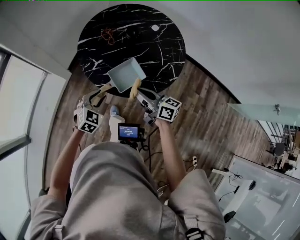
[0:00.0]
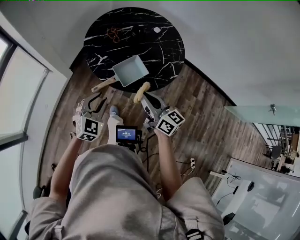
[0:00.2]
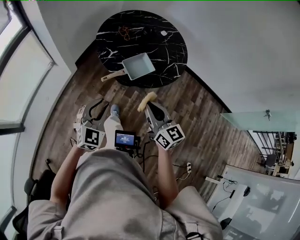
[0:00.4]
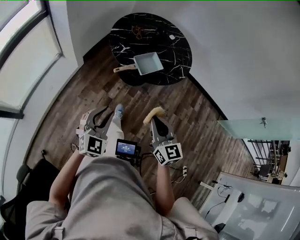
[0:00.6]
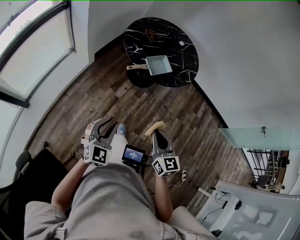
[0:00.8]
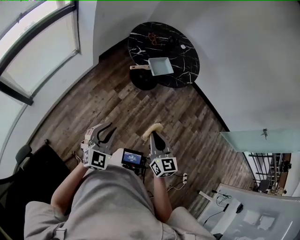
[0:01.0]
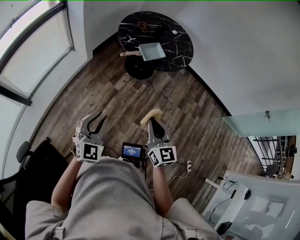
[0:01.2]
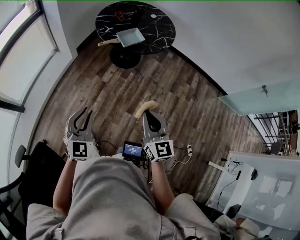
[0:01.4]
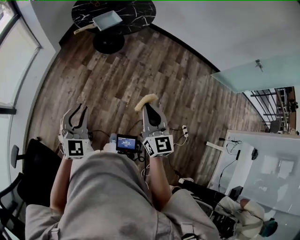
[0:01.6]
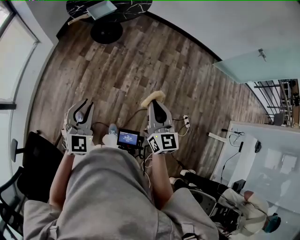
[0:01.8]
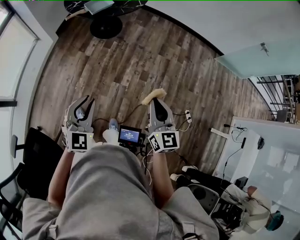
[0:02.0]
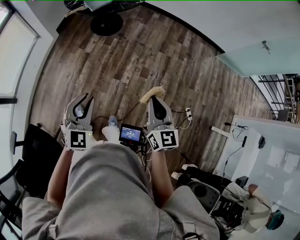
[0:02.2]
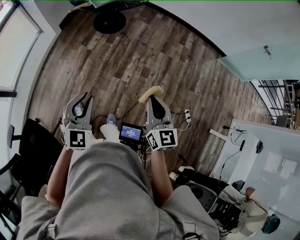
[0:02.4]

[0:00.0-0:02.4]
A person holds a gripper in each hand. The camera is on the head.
0:00.0 to 0:01.2: The two grippers travel together, backward, about 50 cm. The right gripper changes its angle by about 50 degrees; the left gripper turns by about 30 degrees.
0:01.2 to 0:02.4: Both grippers travel together to the right and backward, about 35 cm.

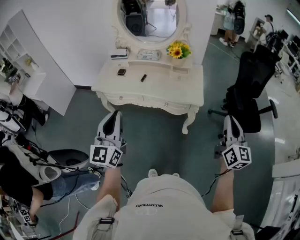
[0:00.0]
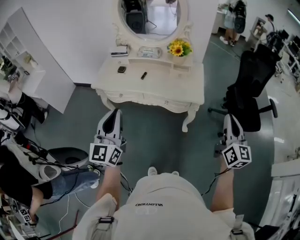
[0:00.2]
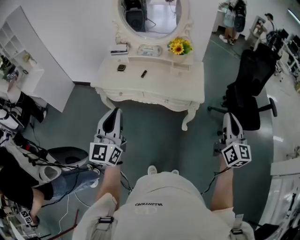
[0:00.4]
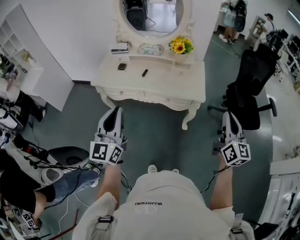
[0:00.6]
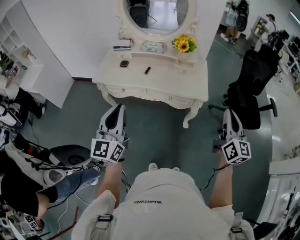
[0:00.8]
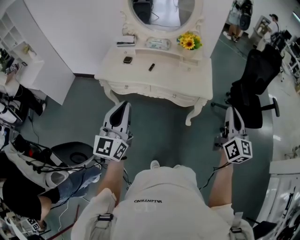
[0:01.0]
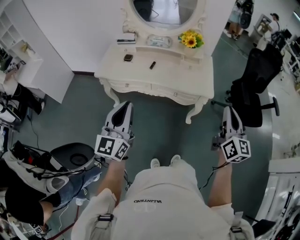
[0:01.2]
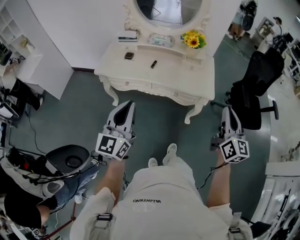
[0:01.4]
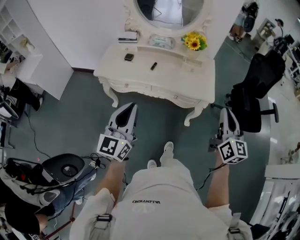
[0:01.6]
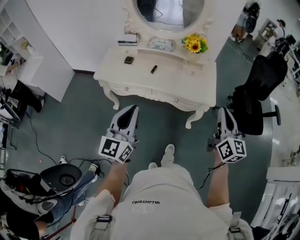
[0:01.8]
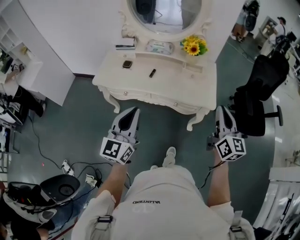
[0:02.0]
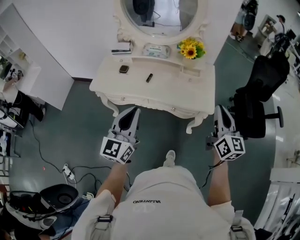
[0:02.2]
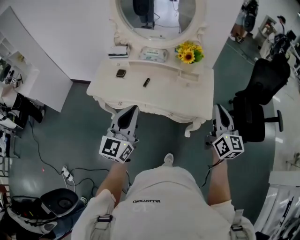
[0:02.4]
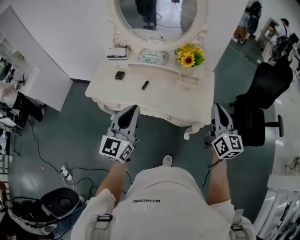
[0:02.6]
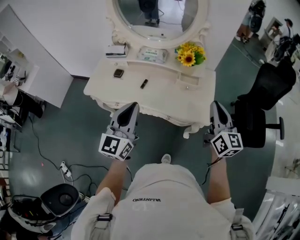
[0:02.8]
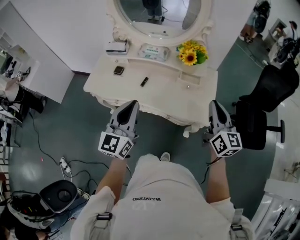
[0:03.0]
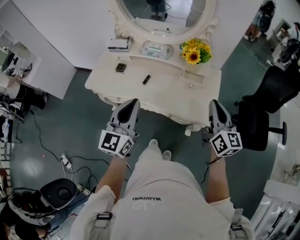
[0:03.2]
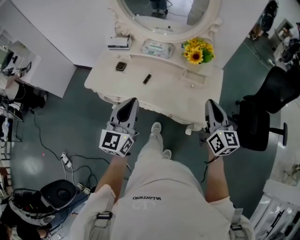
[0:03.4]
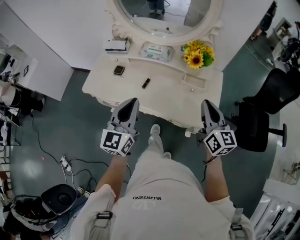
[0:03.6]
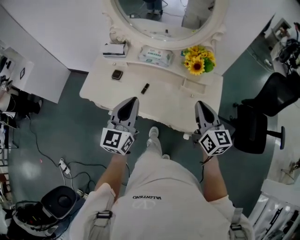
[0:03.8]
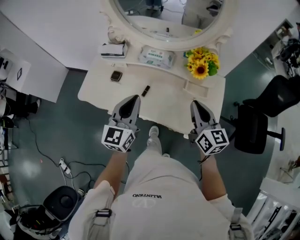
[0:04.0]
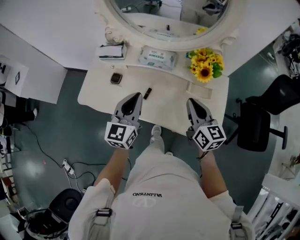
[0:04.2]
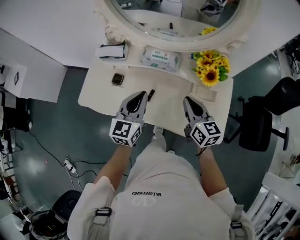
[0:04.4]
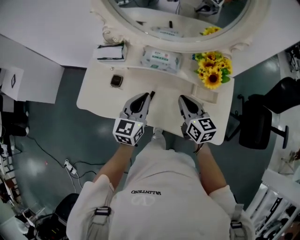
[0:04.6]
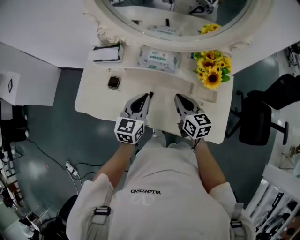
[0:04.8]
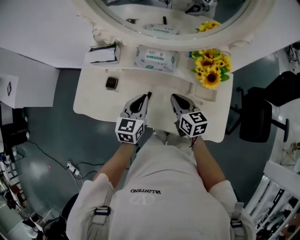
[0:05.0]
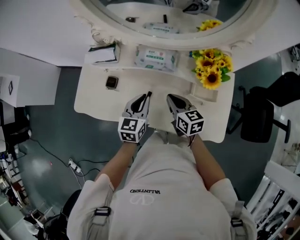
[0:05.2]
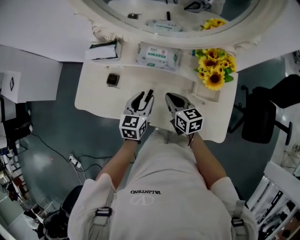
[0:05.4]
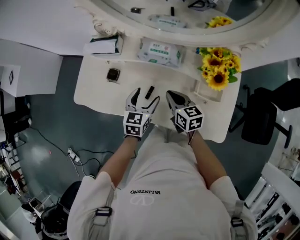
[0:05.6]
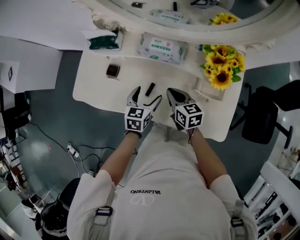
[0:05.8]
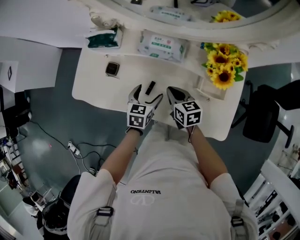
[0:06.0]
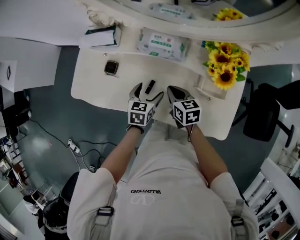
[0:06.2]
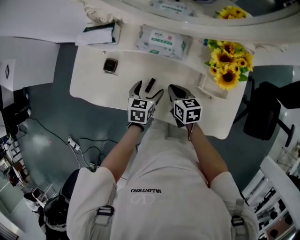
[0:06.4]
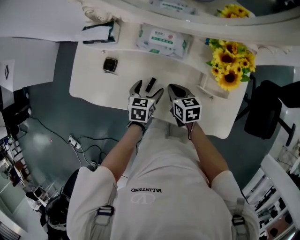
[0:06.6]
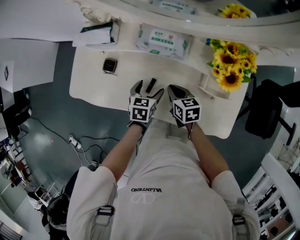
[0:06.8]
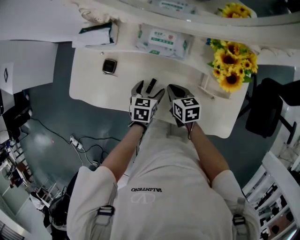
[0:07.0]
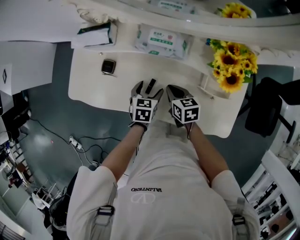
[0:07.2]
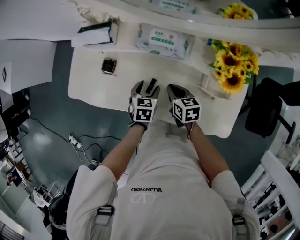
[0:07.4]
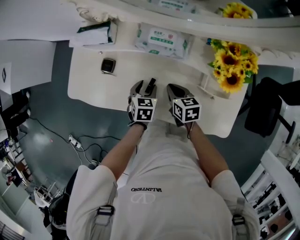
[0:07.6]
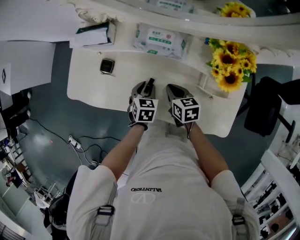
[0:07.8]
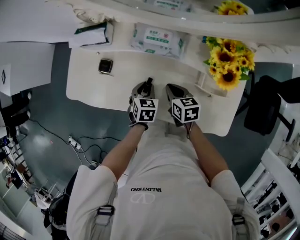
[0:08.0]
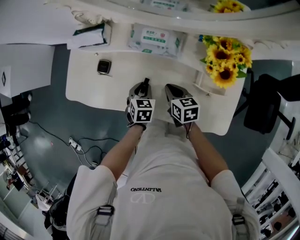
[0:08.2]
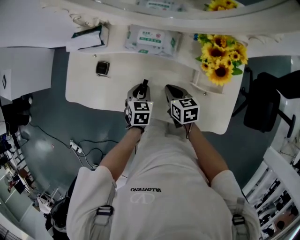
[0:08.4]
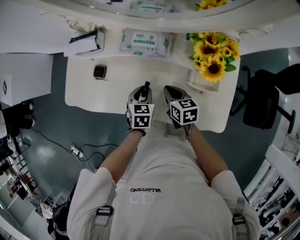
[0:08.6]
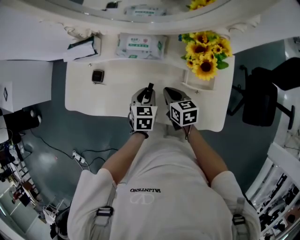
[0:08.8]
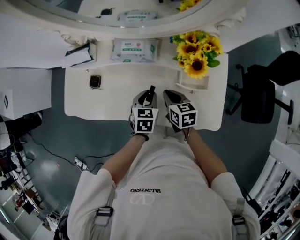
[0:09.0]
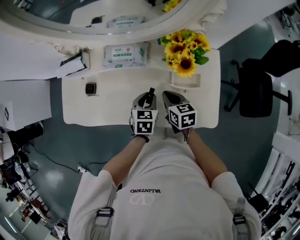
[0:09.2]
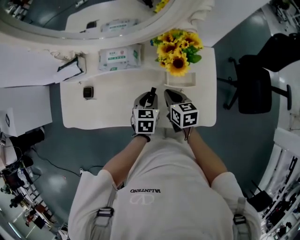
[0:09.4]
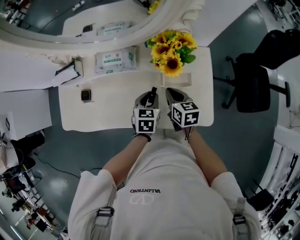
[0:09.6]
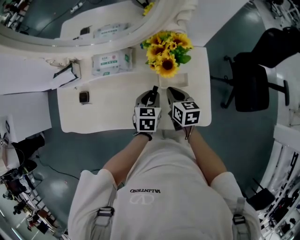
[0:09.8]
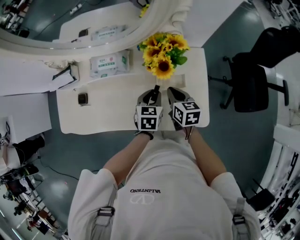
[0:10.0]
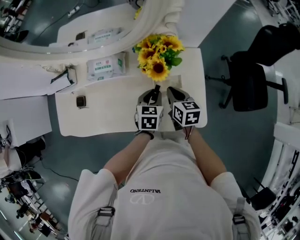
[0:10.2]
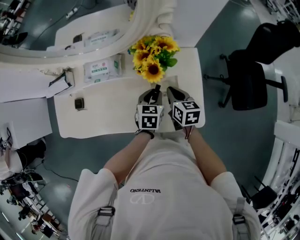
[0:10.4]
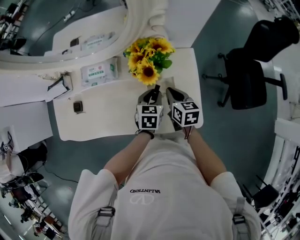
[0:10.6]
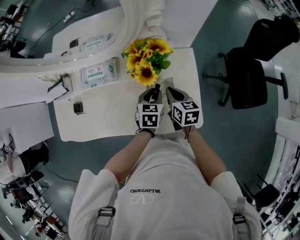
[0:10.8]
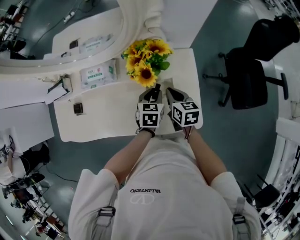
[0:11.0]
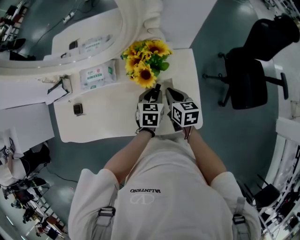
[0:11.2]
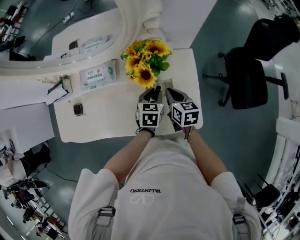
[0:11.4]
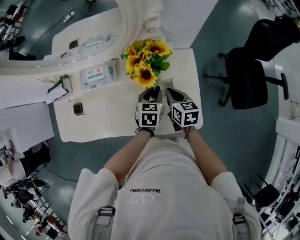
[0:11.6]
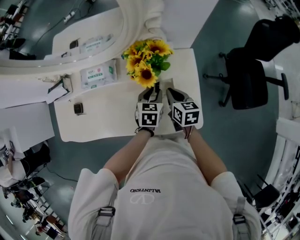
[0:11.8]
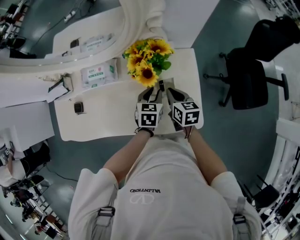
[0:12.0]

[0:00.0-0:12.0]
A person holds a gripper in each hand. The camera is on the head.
0:00.0 to 0:01.6: The right gripper heads to the left and forward, covering about 15 cm, while the left gripper is displaced downward by about 5 cm.
0:01.6 to 0:03.0: Both grippers move forward, roughly 20 cm.
0:03.0 to 0:04.4: The left gripper heads forward and downward, covering some 25 cm. Meanwhile the right gripper shifts roughly 30 cm forward, to the left and downward.
0:04.4 to 0:06.0: The right gripper travels downward and to the left by approximately 15 cm, and changes its angle by some 20 degrees. The left gripper travels downward by roughly 20 cm, tips its fingers downward by about 30 degrees, and opens.
0:06.0 to 0:07.6: Both grippers travel together downward, roughly 5 cm. The left gripper closes.
0:07.6 to 0:09.0: Both grippers move to the right and upward, approximately 10 cm.
0:09.0 to 0:10.4: Both grippers travel together to the right, about 15 cm.
0:10.4 to 0:12.0: There are only small adjustments of the grippers.

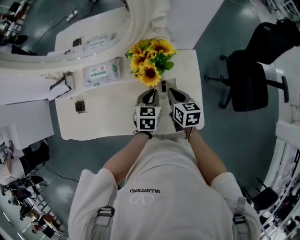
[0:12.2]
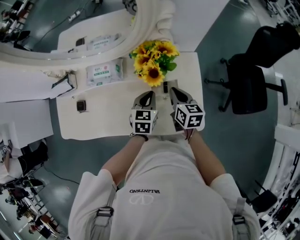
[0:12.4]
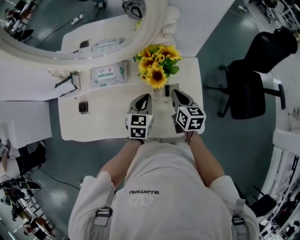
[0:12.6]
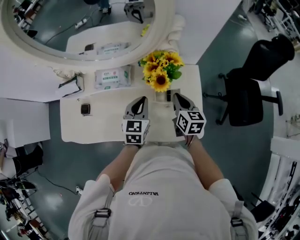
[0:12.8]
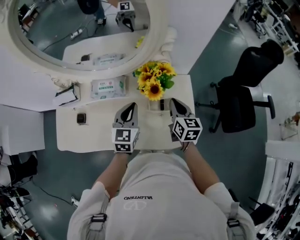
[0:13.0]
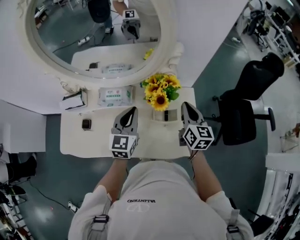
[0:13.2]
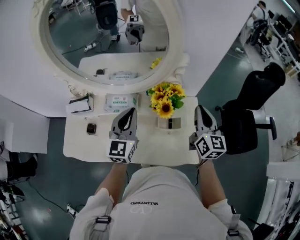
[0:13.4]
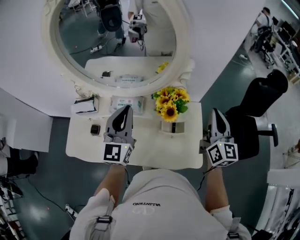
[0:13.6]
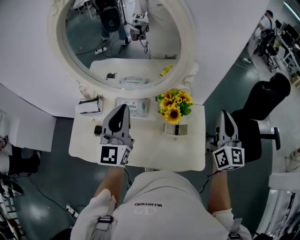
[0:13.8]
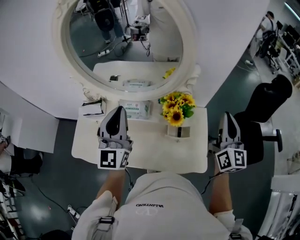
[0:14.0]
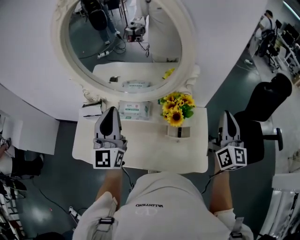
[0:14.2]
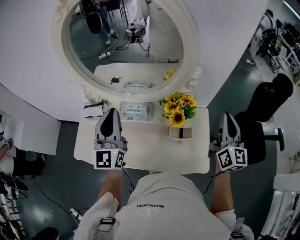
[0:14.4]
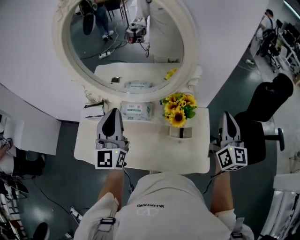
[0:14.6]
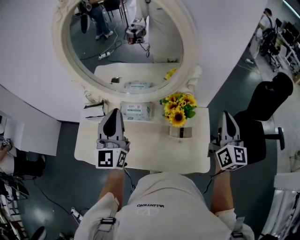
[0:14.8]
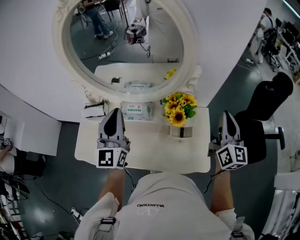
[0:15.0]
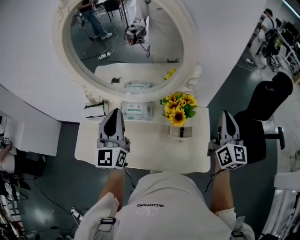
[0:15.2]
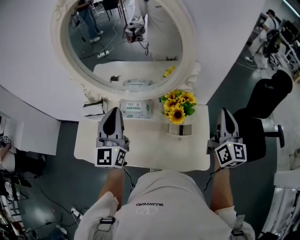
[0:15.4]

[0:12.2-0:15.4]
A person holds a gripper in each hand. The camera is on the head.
0:12.2 to 0:13.8: The right gripper moves upward, about 35 cm, and angles its fingers upward, by some 40 degrees; the left gripper shifts some 40 cm upward and to the left, and angles its fingers upward, by approximately 50 degrees.
0:13.8 to 0:15.4: The grippers make only small movements.

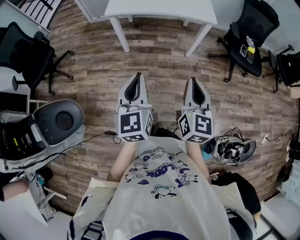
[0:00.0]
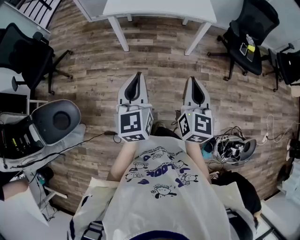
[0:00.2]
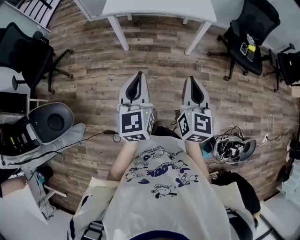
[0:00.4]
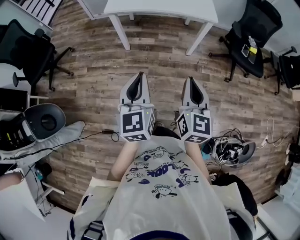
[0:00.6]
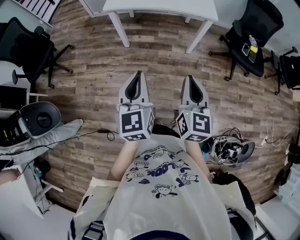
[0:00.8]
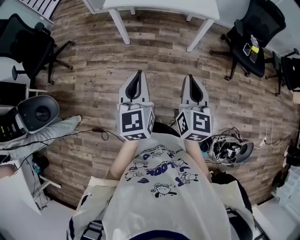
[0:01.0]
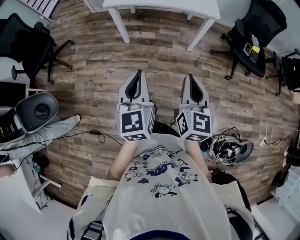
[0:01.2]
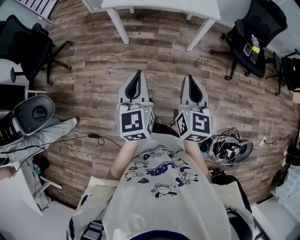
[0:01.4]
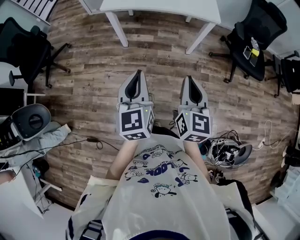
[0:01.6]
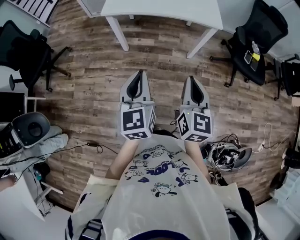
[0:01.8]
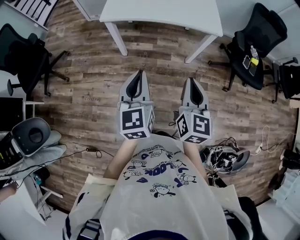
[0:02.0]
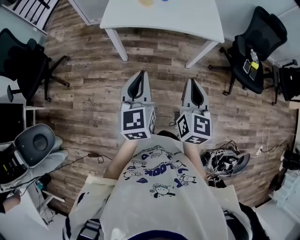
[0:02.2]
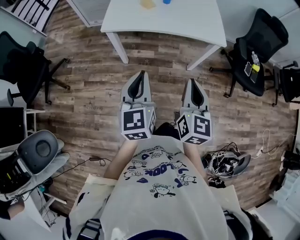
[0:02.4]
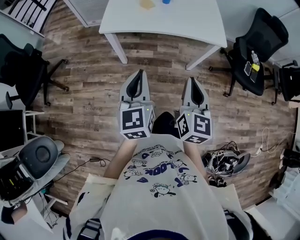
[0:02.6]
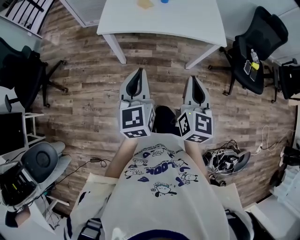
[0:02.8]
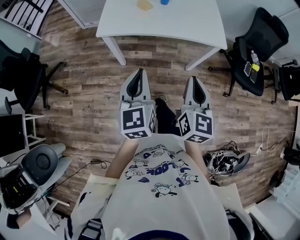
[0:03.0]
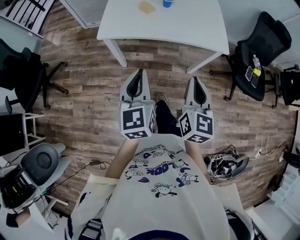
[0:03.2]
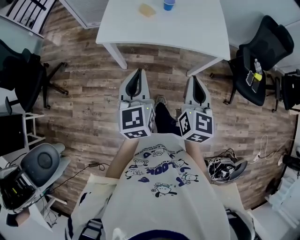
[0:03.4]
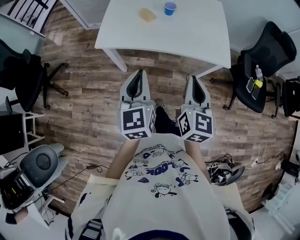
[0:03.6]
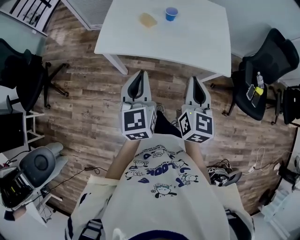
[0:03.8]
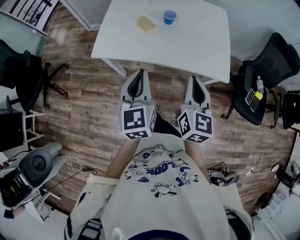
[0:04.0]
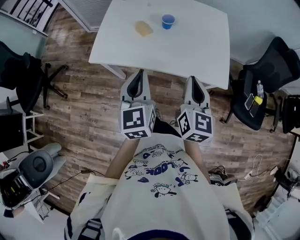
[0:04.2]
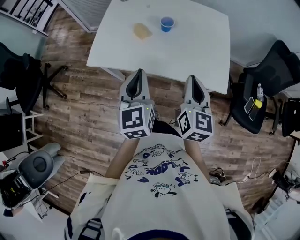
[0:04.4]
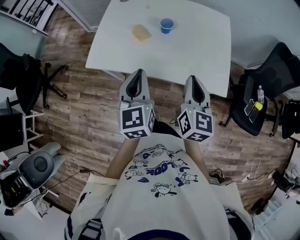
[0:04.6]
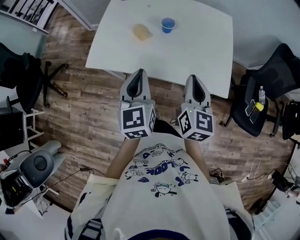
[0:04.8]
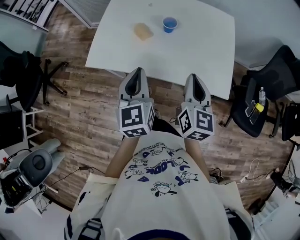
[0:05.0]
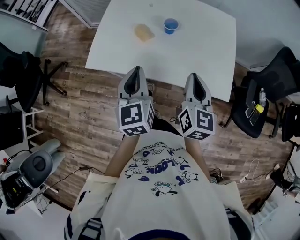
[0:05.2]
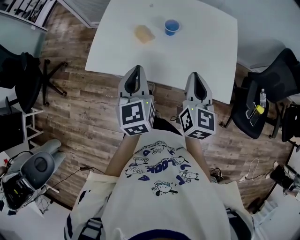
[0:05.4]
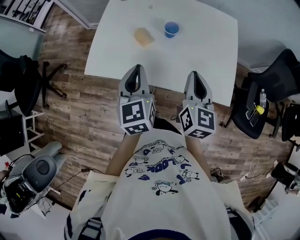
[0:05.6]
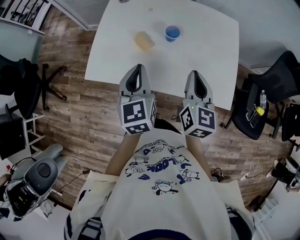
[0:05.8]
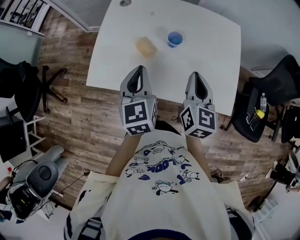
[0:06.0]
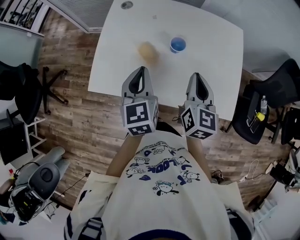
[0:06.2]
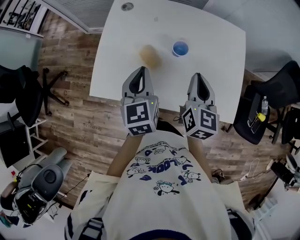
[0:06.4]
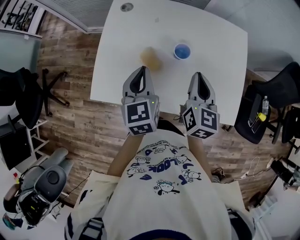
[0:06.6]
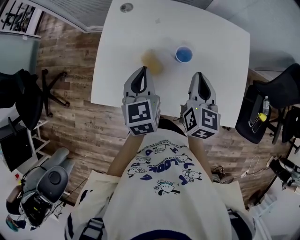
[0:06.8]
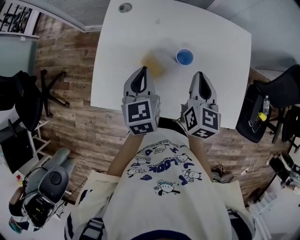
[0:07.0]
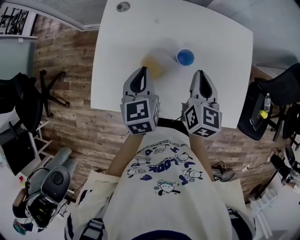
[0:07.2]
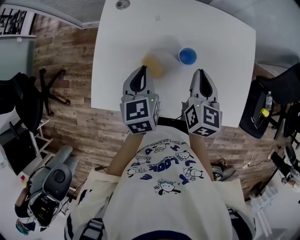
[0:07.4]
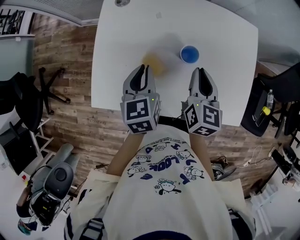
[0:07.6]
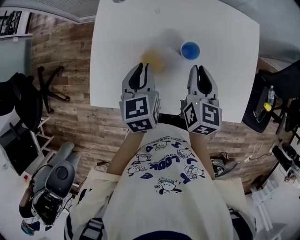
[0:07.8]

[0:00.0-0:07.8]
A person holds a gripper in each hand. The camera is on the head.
0:00.0 to 0:01.6: The left gripper moves approximately 5 cm.
0:01.6 to 0:03.2: Both grippers move forward, some 20 cm.
0:03.2 to 0:04.6: The grippers both shift forward by approximately 20 cm.
0:04.6 to 0:06.2: The two grippers go about 15 cm forward.
0:06.2 to 0:07.8: The left gripper travels downward and forward by about 10 cm. The right gripper travels forward and downward by about 10 cm.
